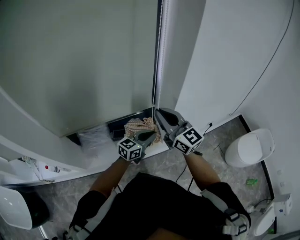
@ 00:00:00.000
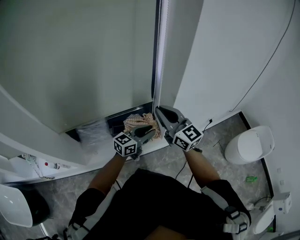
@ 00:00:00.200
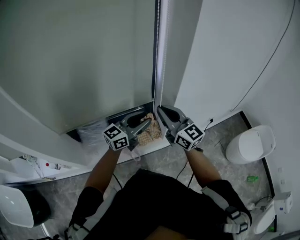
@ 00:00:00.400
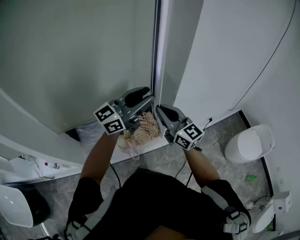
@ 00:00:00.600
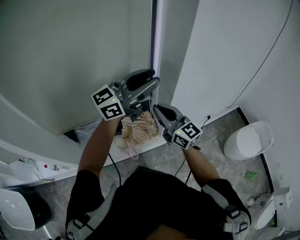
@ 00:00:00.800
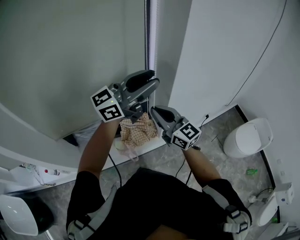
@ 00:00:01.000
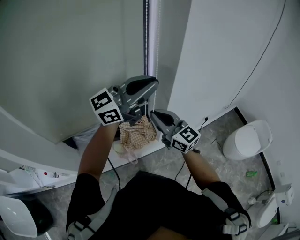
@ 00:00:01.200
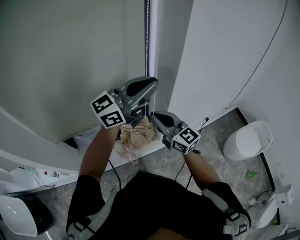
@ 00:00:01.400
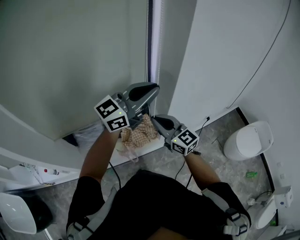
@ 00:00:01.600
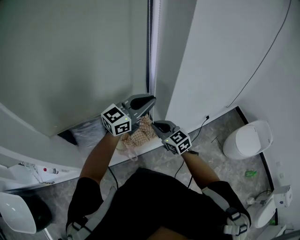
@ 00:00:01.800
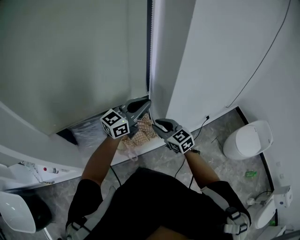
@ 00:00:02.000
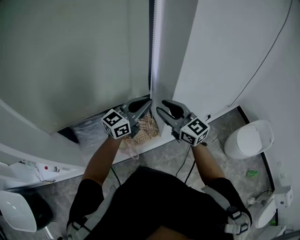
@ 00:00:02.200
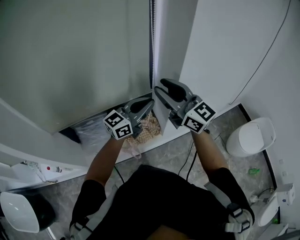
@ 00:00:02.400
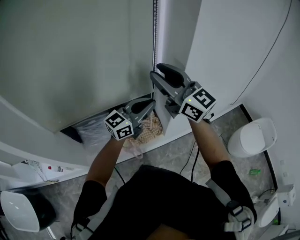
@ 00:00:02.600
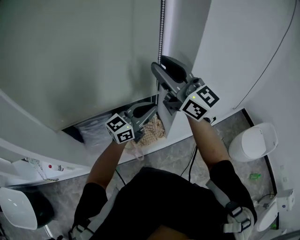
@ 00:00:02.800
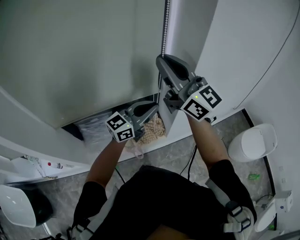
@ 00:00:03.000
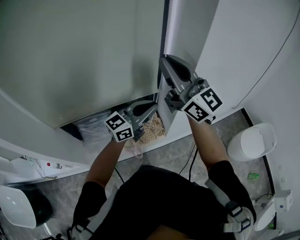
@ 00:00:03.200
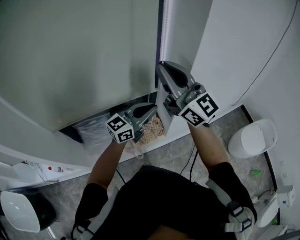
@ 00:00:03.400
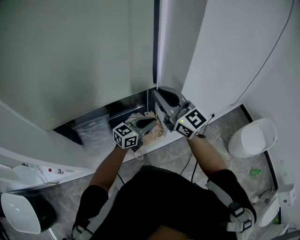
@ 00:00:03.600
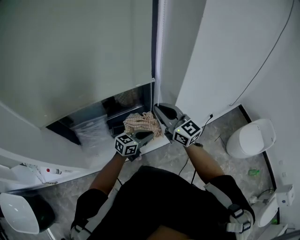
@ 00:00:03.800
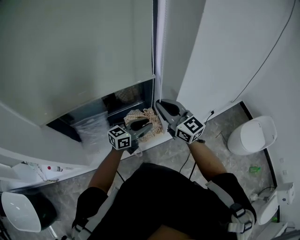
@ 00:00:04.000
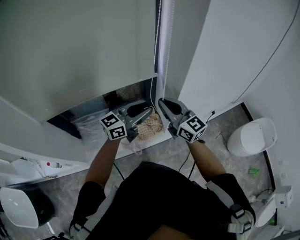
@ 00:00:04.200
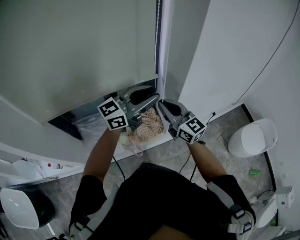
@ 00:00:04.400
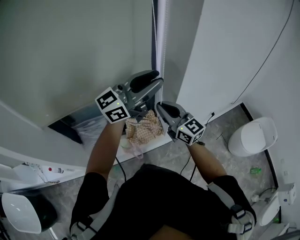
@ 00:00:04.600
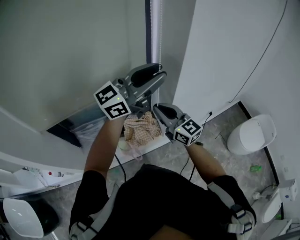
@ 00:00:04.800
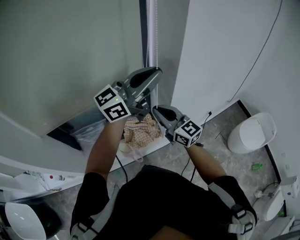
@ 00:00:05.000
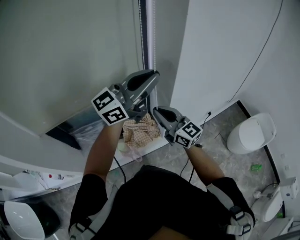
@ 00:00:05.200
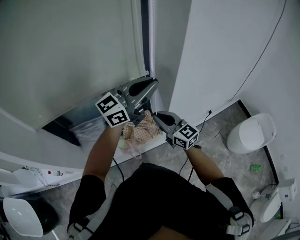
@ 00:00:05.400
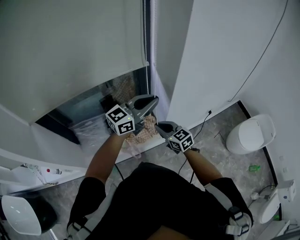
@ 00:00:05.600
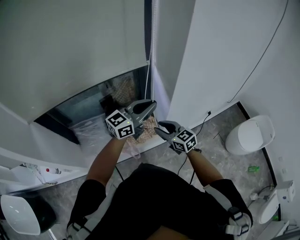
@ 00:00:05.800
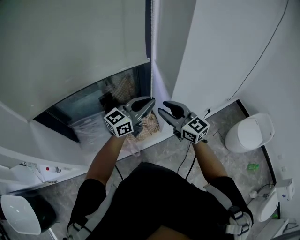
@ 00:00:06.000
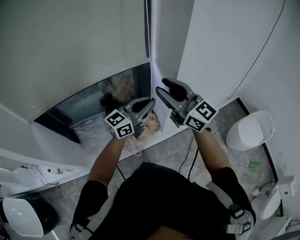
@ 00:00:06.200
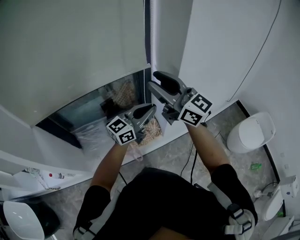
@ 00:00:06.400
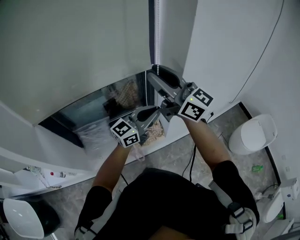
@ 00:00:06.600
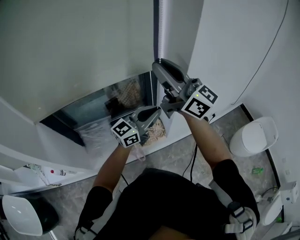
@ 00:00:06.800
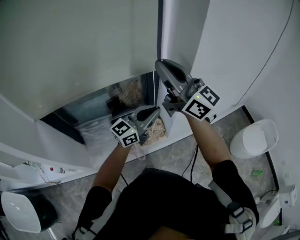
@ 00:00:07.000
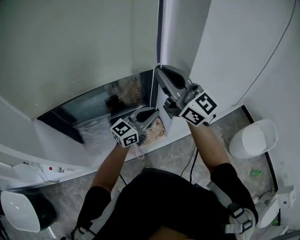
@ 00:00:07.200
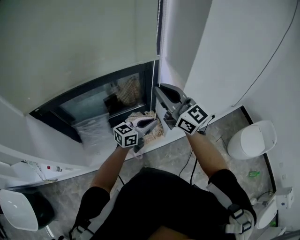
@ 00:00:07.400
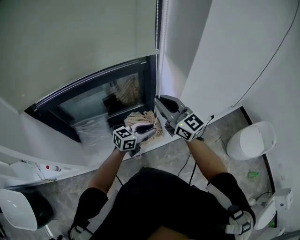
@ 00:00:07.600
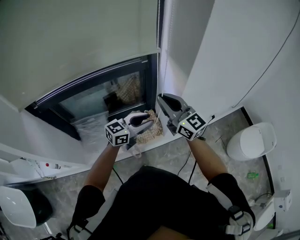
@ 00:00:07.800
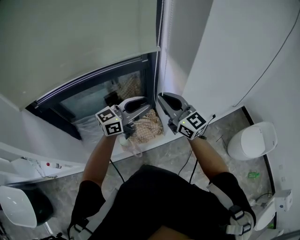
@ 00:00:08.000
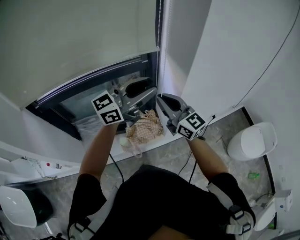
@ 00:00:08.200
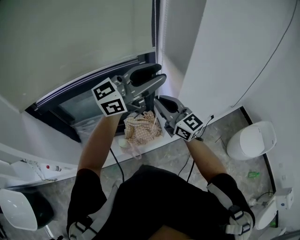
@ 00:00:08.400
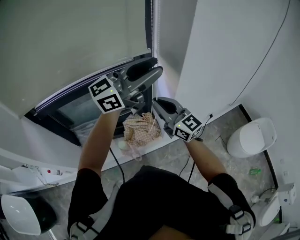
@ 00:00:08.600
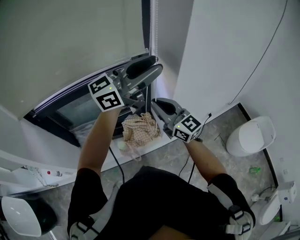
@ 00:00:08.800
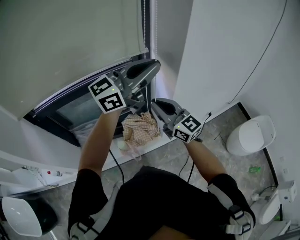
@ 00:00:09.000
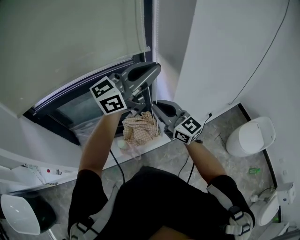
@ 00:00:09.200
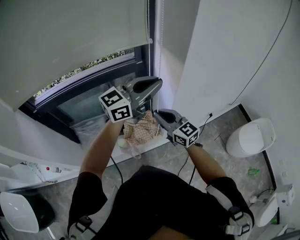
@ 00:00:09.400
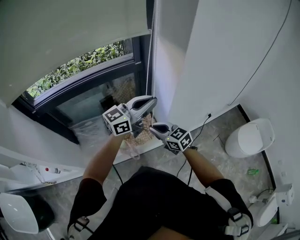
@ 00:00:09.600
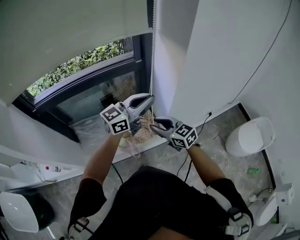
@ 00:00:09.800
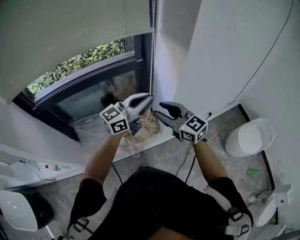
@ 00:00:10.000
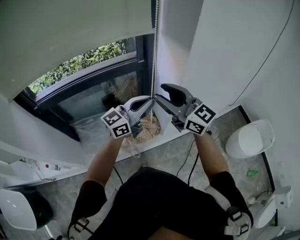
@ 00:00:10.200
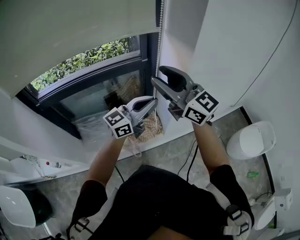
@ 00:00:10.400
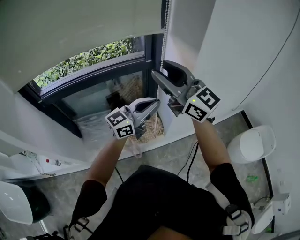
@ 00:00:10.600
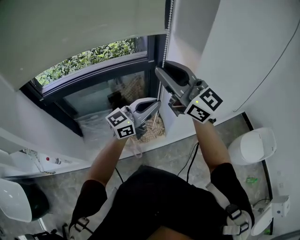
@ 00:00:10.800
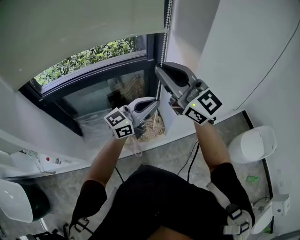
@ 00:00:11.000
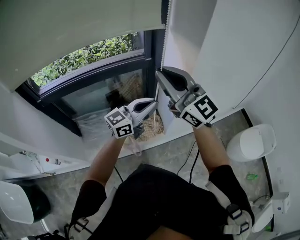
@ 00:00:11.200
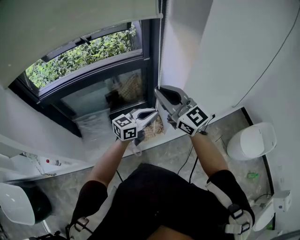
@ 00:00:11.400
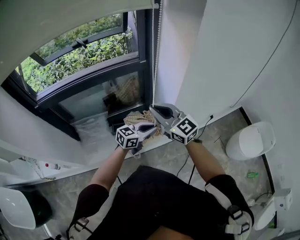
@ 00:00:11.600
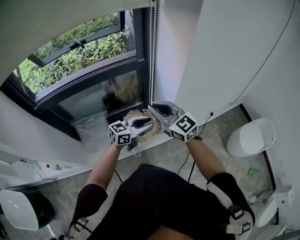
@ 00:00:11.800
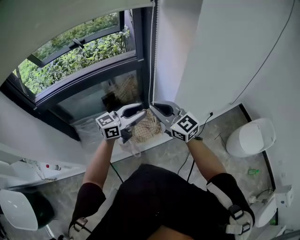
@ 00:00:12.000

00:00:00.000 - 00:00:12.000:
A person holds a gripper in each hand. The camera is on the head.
00:00:00.000 - 00:00:01.600: The right gripper heads downward, covering approximately 5 cm, while the left gripper heads upward, covering roughly 30 cm, changes its angle by about 30 degrees, and opens, then closes again.
00:00:01.600 - 00:00:03.000: The right gripper is displaced upward by some 25 cm, rotates about 30 degrees, and opens, then closes again; the left gripper travels downward by roughly 10 cm.
00:00:03.000 - 00:00:04.400: The left gripper reaches some 20 cm downward, then returns, and opens its fingers. Meanwhile the right gripper heads downward, covering about 25 cm, and rotates about 20 degrees.
00:00:04.400 - 00:00:06.000: The right gripper goes downward and returns, some 15 cm each way, and opens. The left gripper travels downward by roughly 10 cm, and closes up.
00:00:06.000 - 00:00:07.600: The right gripper reaches some 25 cm upward, then returns, and closes, while the left gripper heads downward, covering approximately 15 cm, and rotates about 20 degrees.
00:00:07.600 - 00:00:09.000: The left gripper is displaced upward by about 35 cm, and points its fingers about 30 degrees further upward.
00:00:09.000 - 00:00:10.400: The right gripper is displaced upward by approximately 15 cm, and opens up; the left gripper shifts roughly 15 cm downward.
00:00:10.400 - 00:00:12.000: The right gripper heads downward, covering approximately 20 cm, and closes. The left gripper moves downward, roughly 10 cm, and opens.

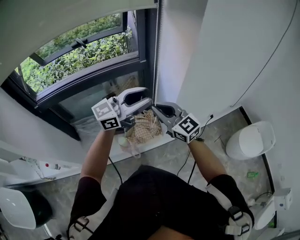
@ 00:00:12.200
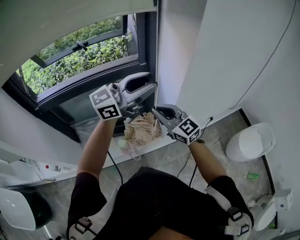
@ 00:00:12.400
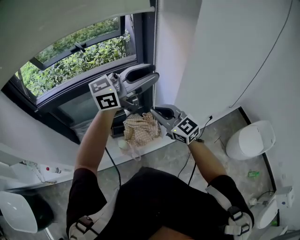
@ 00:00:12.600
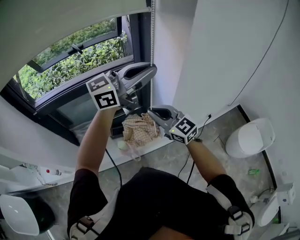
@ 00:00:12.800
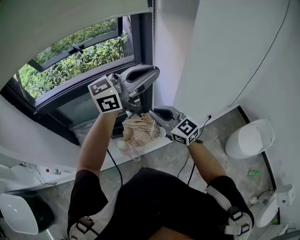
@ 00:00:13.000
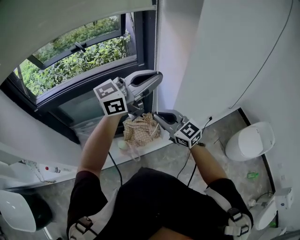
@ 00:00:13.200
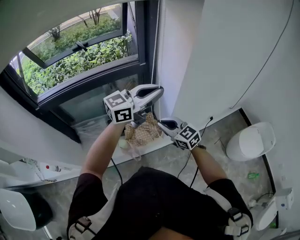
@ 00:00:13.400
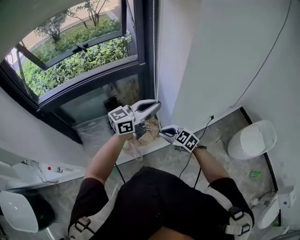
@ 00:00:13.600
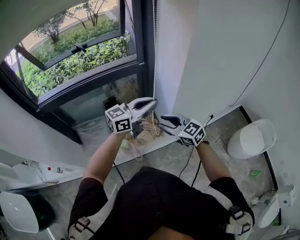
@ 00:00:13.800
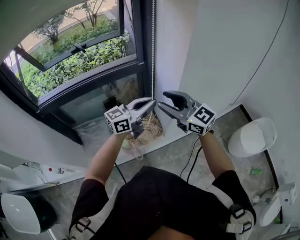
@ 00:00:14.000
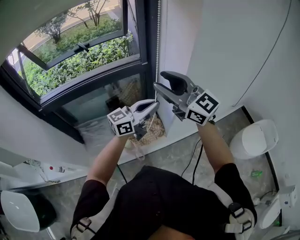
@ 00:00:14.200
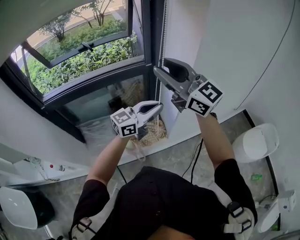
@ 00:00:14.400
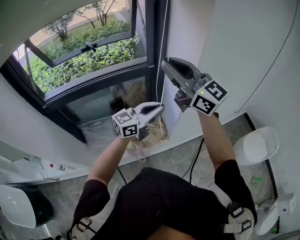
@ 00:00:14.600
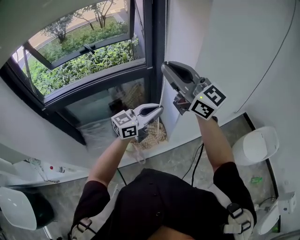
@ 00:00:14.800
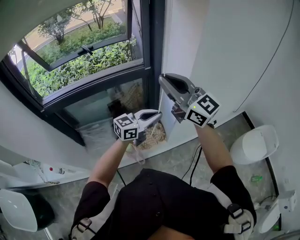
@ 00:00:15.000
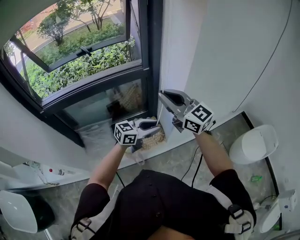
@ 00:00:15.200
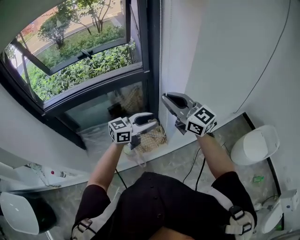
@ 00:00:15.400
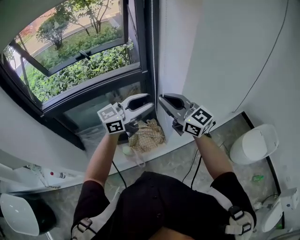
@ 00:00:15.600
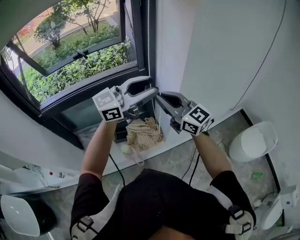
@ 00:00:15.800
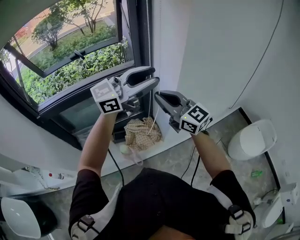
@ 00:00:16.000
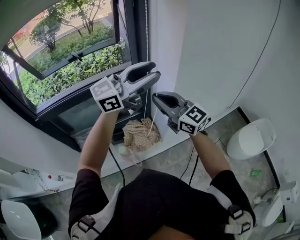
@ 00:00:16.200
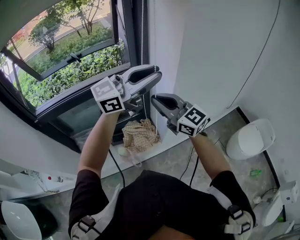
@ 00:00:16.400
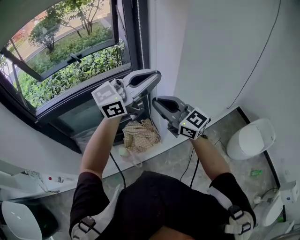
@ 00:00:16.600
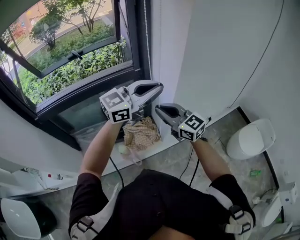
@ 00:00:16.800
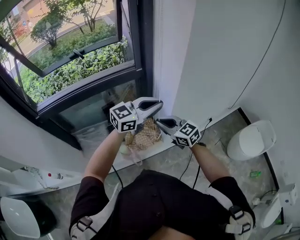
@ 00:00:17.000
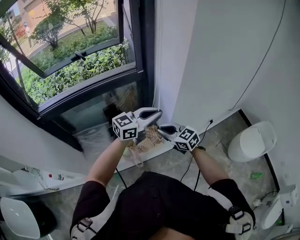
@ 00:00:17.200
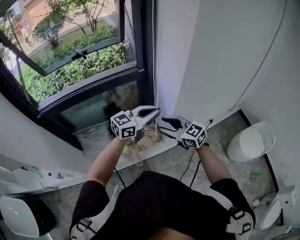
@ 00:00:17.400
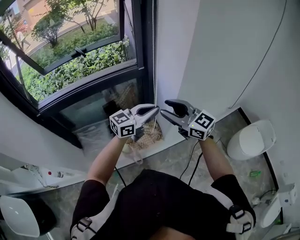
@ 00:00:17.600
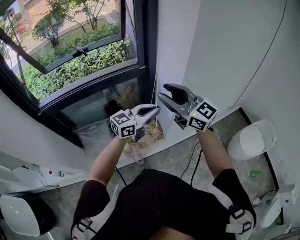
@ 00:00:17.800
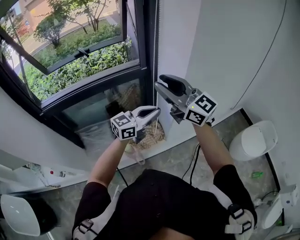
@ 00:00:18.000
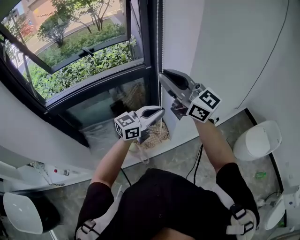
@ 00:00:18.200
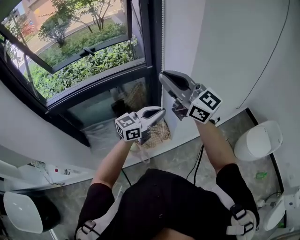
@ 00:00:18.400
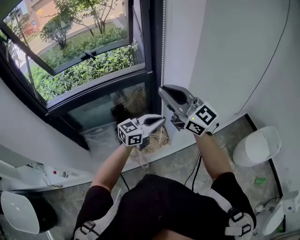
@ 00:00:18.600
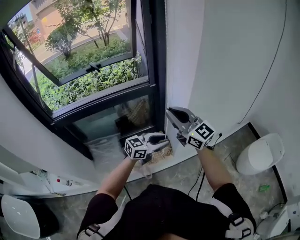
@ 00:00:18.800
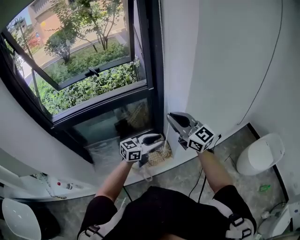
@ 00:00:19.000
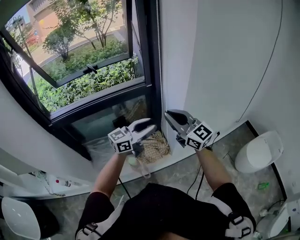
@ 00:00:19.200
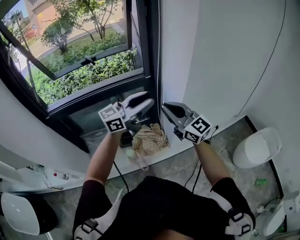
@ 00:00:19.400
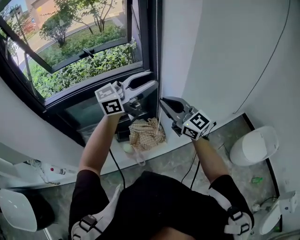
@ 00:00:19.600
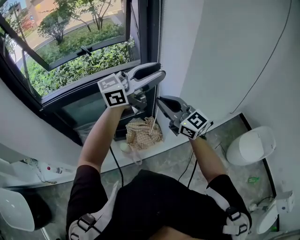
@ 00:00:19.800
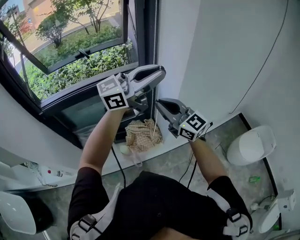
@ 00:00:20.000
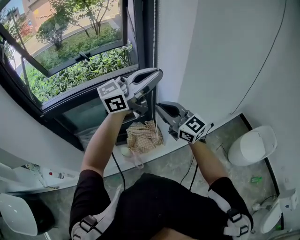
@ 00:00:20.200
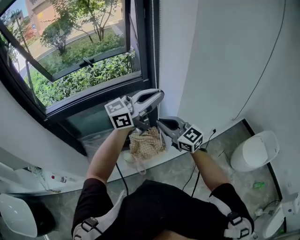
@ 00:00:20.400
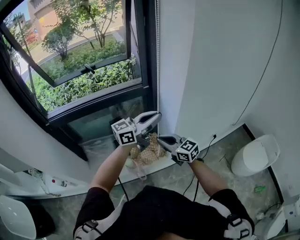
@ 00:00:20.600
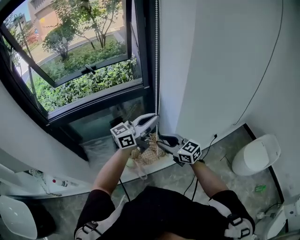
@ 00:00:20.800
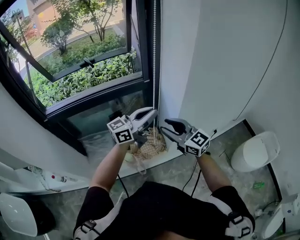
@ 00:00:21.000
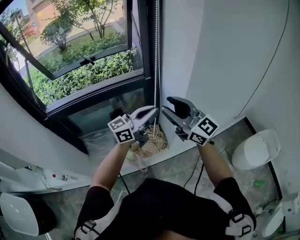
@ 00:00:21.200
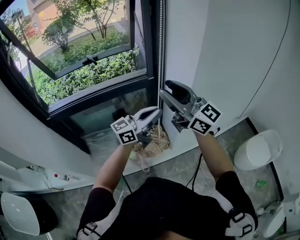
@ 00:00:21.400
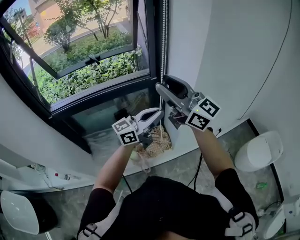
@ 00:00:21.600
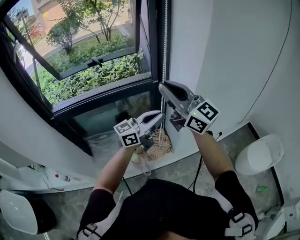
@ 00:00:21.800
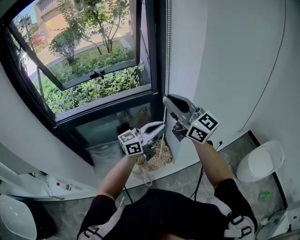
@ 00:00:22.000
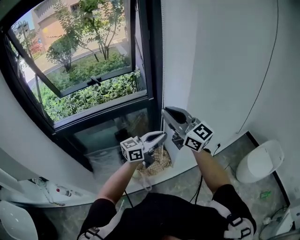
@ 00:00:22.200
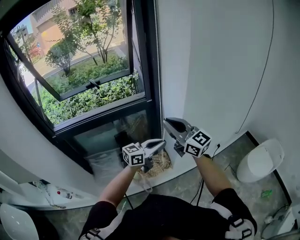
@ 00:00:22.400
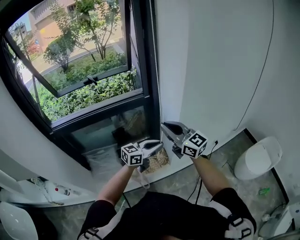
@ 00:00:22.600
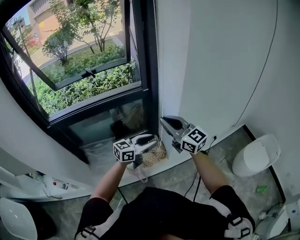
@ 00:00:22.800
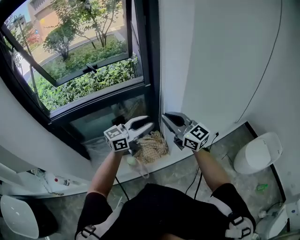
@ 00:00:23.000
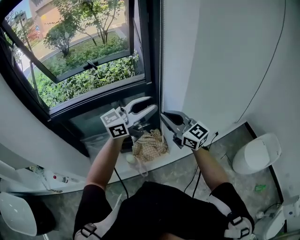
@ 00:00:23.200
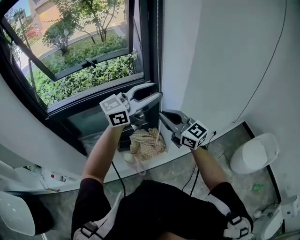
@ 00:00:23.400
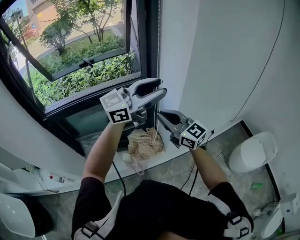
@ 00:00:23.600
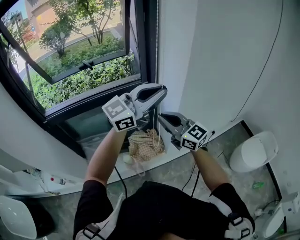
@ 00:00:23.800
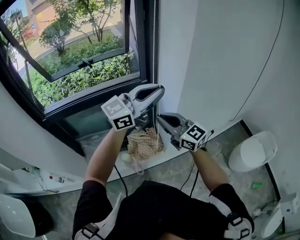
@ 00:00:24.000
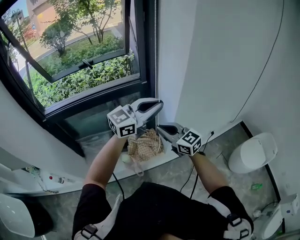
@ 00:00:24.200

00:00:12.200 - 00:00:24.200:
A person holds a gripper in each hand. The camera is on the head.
00:00:12.200 - 00:00:13.800: The grippers both shift downward by approximately 10 cm. The left gripper closes its fingers; the right gripper opens up.
00:00:13.800 - 00:00:15.200: The right gripper shifts about 20 cm upward, changes its angle by approximately 30 degrees, and closes its fingers, while the left gripper moves downward, roughly 10 cm.
00:00:15.200 - 00:00:16.600: The left gripper travels upward by roughly 30 cm, and swivels roughly 30 degrees.
00:00:16.600 - 00:00:18.200: The right gripper travels downward and back again, about 20 cm each way, and opens and closes again, while the left gripper travels downward by roughly 20 cm.
00:00:18.200 - 00:00:19.800: The right gripper heads downward, covering roughly 10 cm. The left gripper moves upward, approximately 20 cm, and opens.
00:00:19.800 - 00:00:21.200: The right gripper travels downward and back again, approximately 15 cm each way, and opens up. Meanwhile the left gripper travels downward by approximately 15 cm, and closes up.
00:00:21.200 - 00:00:22.600: The right gripper heads downward, covering approximately 5 cm, and closes. Meanwhile the left gripper moves downward, roughly 15 cm, and swivels roughly 20 degrees.
00:00:22.600 - 00:00:24.200: The right gripper is displaced downward by about 10 cm, while the left gripper goes some 20 cm upward, turns by some 20 degrees, and opens and closes again.
